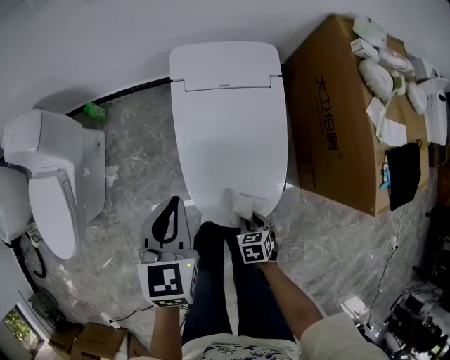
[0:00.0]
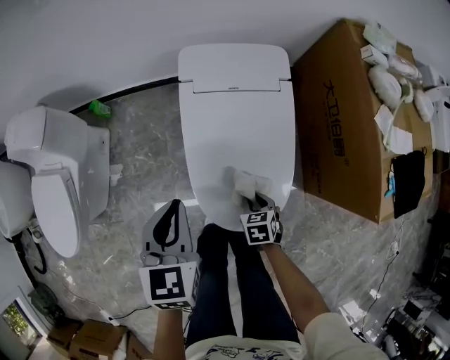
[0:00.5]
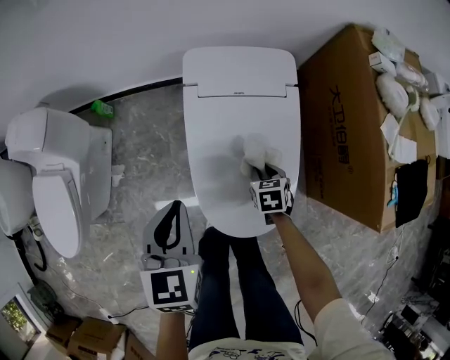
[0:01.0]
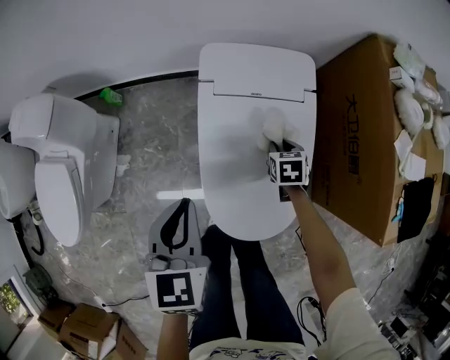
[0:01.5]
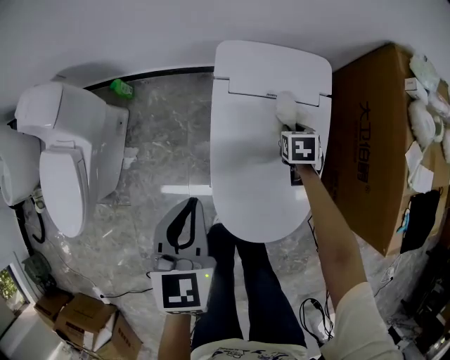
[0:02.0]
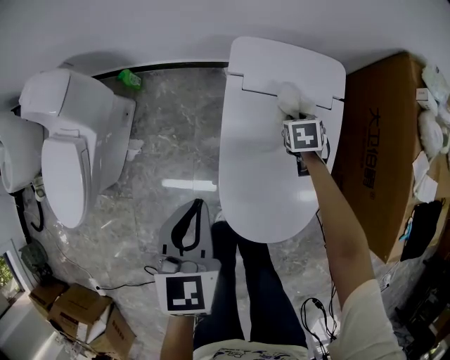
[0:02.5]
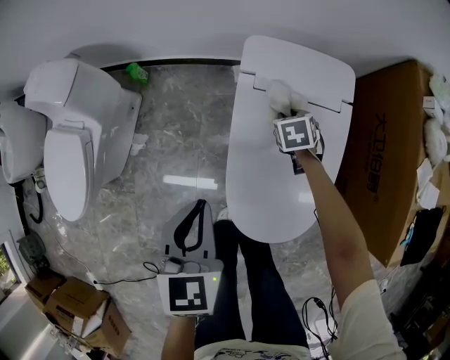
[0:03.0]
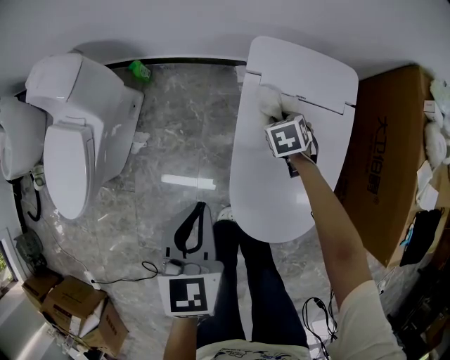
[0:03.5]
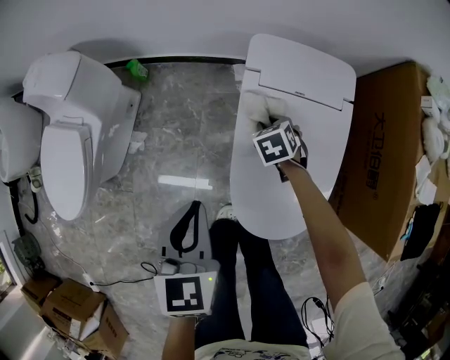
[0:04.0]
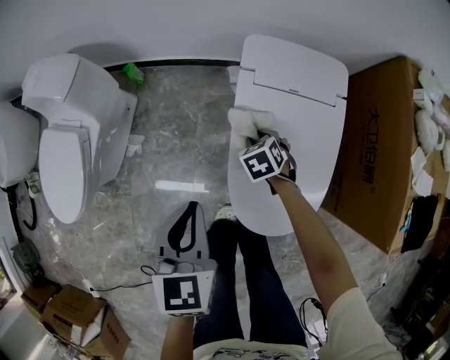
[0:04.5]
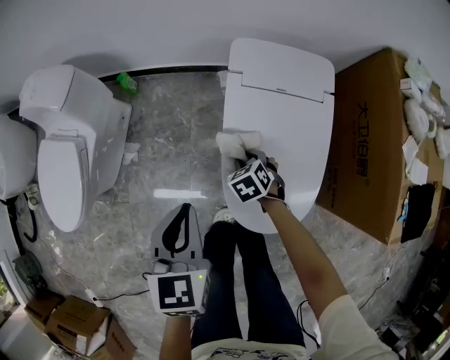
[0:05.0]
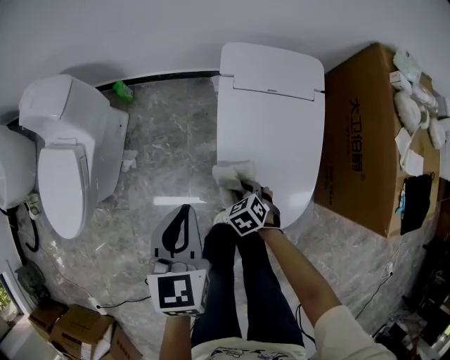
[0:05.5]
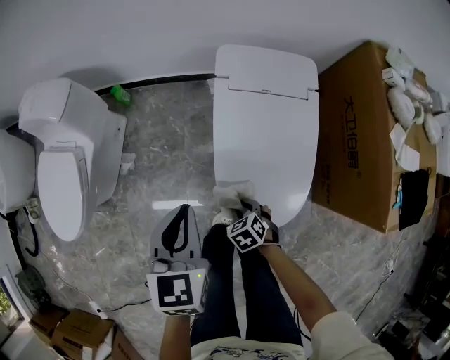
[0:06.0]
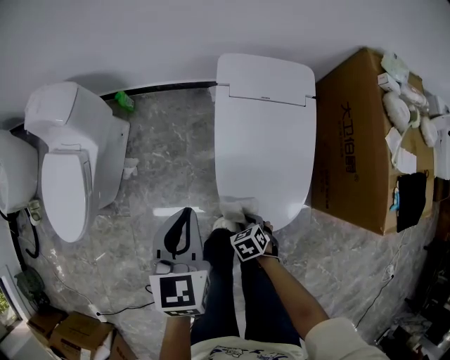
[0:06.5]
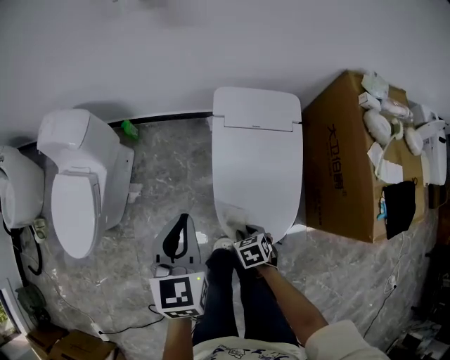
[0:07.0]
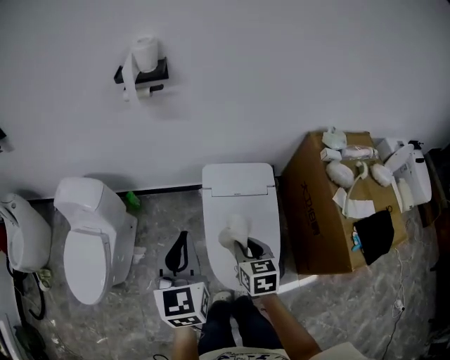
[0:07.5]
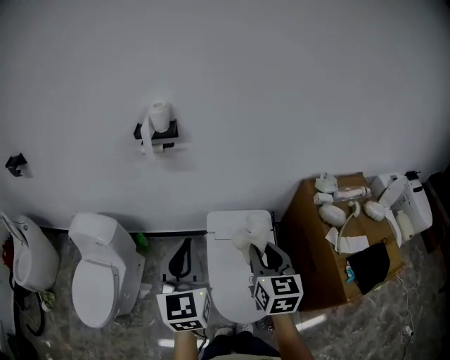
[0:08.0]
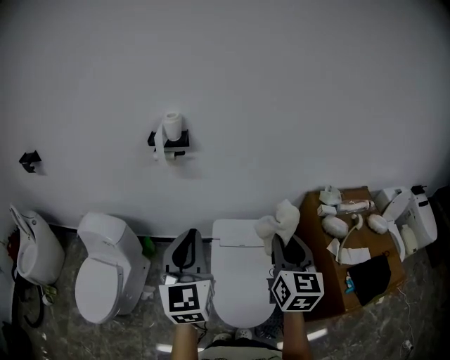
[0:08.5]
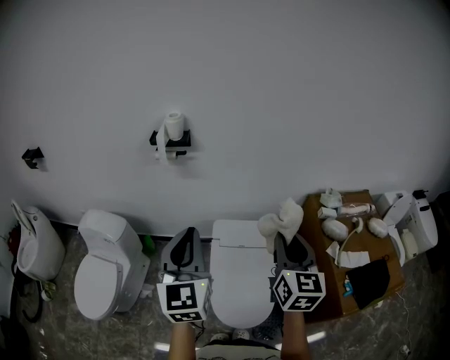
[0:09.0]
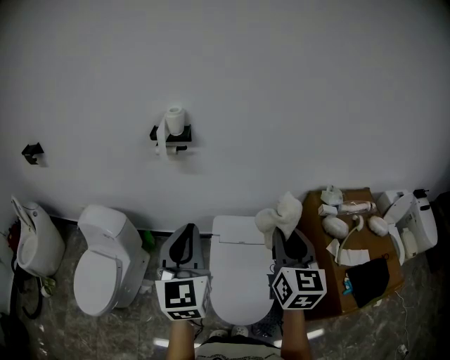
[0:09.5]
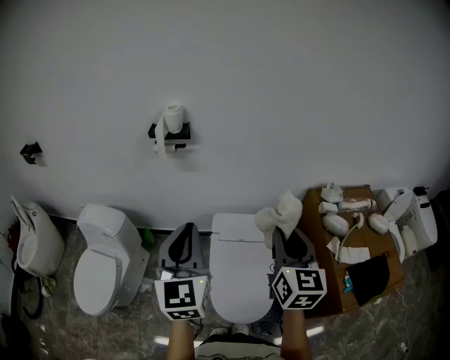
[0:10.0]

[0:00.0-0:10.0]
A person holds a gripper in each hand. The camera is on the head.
0.0 to 2.0 s: The left gripper changes place by some 5 cm. Meanwhile the right gripper heads forward, covering some 35 cm.
2.0 to 4.0 s: The right gripper shifts approximately 15 cm to the left, and turns by roughly 30 degrees; the left gripper heads to the left, covering approximately 5 cm.
4.0 to 6.0 s: The right gripper shifts approximately 30 cm backward.
6.0 to 8.0 s: The right gripper moves upward, approximately 60 cm, and points its fingers about 60 degrees further upward. The left gripper goes about 35 cm upward, and angles its fingers upward, by some 30 degrees.
8.0 to 10.0 s: The left gripper travels upward by roughly 5 cm, while the right gripper heads upward and to the right, covering some 10 cm.

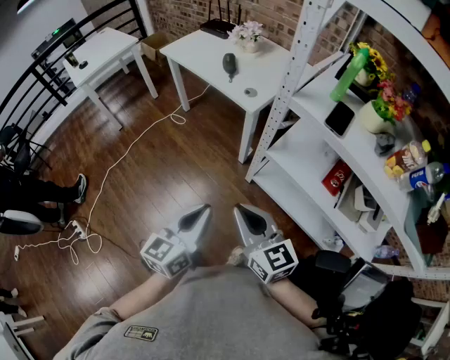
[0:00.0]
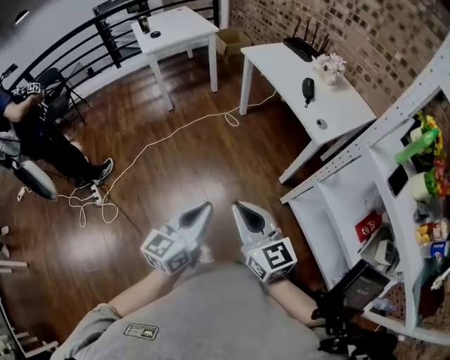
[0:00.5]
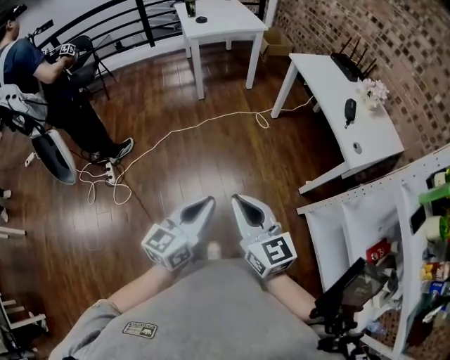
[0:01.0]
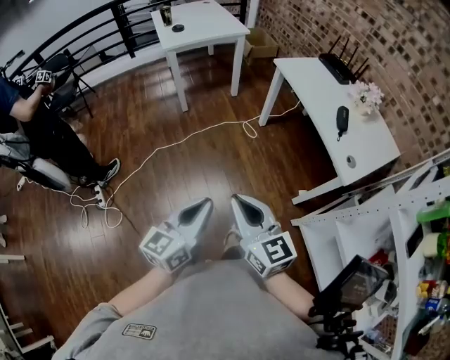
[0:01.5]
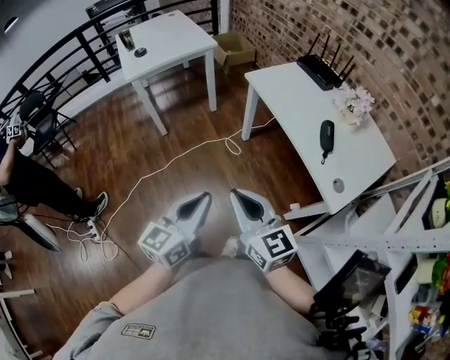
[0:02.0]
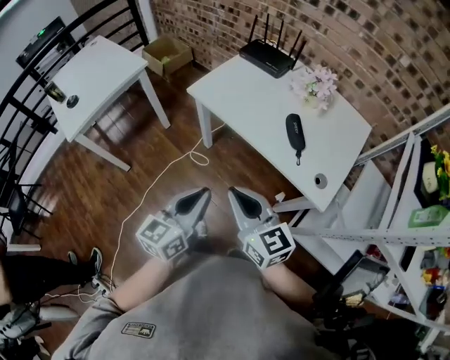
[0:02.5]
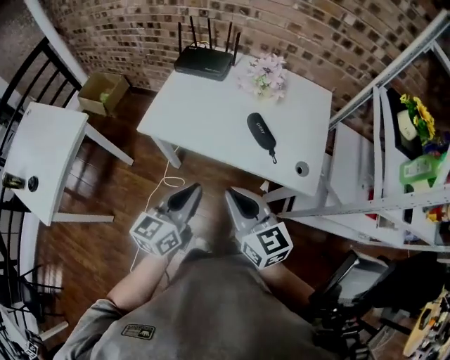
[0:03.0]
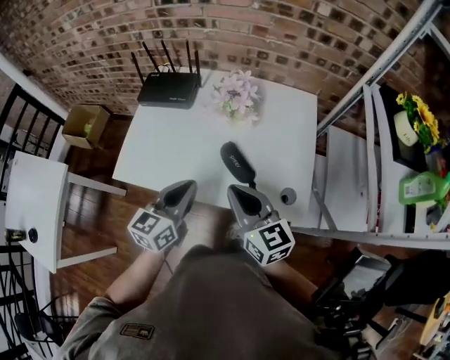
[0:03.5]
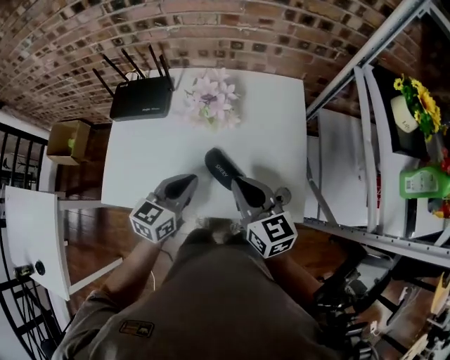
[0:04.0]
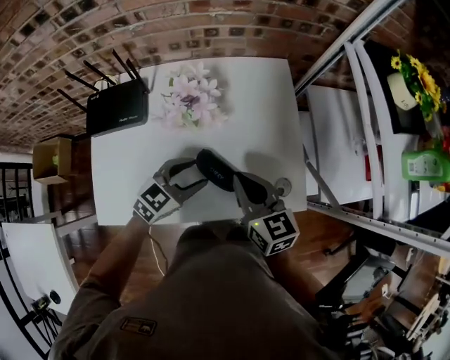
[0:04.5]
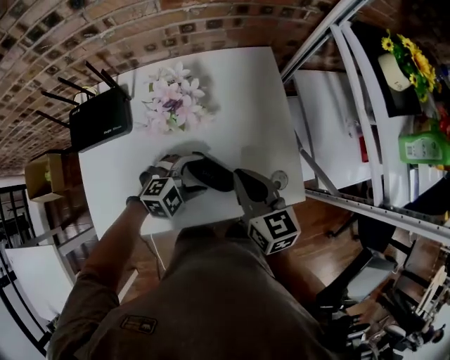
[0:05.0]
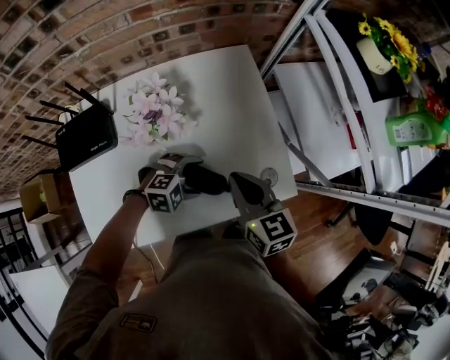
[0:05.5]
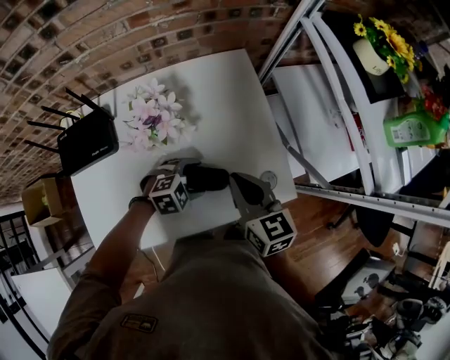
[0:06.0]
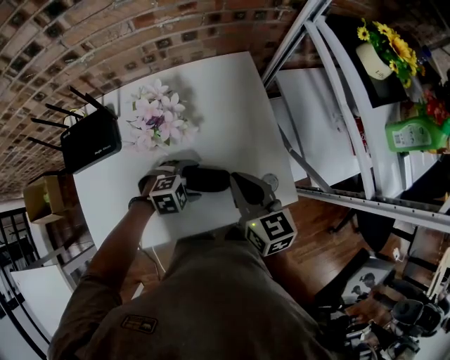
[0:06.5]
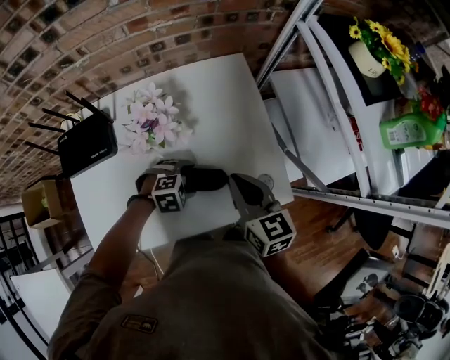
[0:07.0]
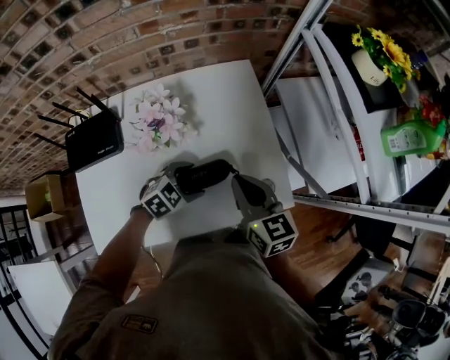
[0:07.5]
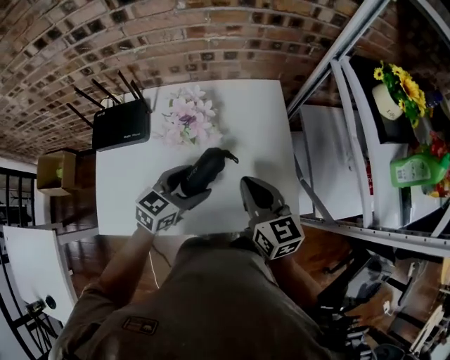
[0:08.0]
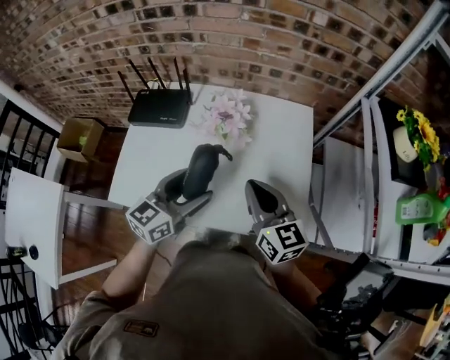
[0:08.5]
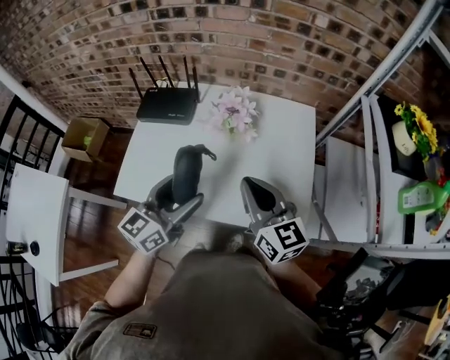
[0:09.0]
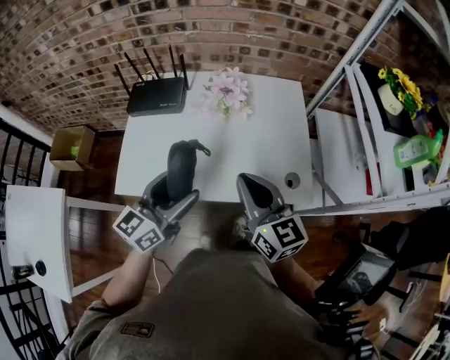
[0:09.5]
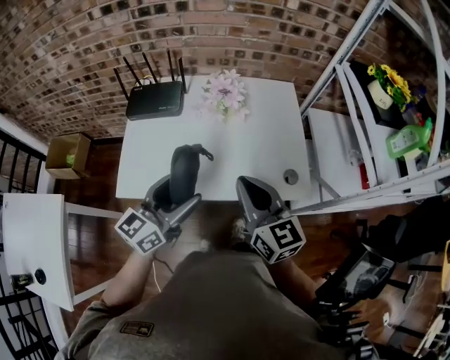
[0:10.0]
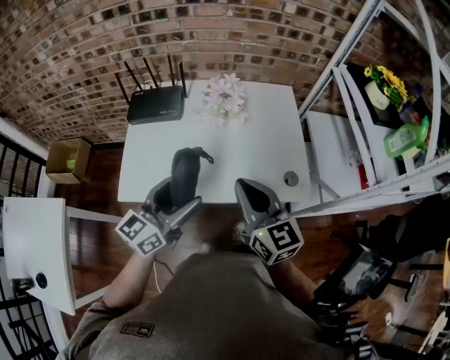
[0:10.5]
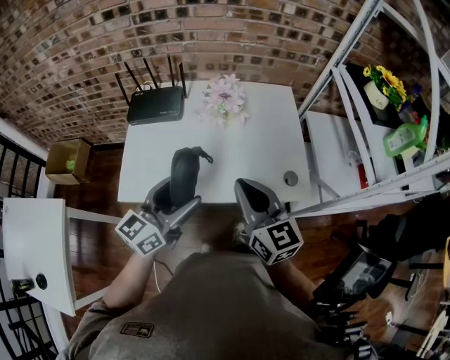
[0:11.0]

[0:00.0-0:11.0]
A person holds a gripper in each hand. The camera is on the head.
0.0 to 2.0 s: Both grippers are carried forward and to the left, roughly 40 cm.
2.0 to 3.5 s: The left gripper moves about 35 cm, and rotates some 50 degrees. The right gripper moves about 30 cm, and turns by roughly 50 degrees.
3.5 to 5.5 s: The left gripper shifts roughly 20 cm downward, angles its fingers downward, by about 40 degrees, and opens its fingers. Meanwhile the right gripper moves roughly 15 cm, and turns by some 40 degrees.
5.5 to 7.5 s: The left gripper turns by about 30 degrees.
7.5 to 9.0 s: The right gripper ends up roughly 15 cm from where it was, and swivels some 30 degrees, while the left gripper shifts about 20 cm upward, and angles its fingers upward, by approximately 40 degrees.
9.0 to 11.0 s: The right gripper shifts roughly 10 cm backward and to the left, while the left gripper travels backward by some 5 cm.

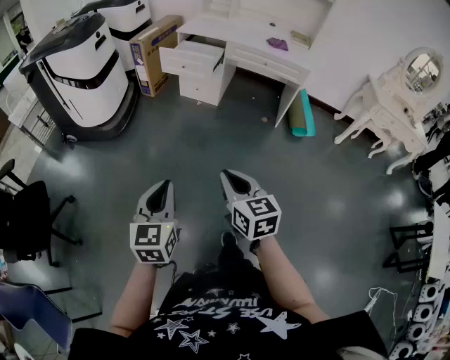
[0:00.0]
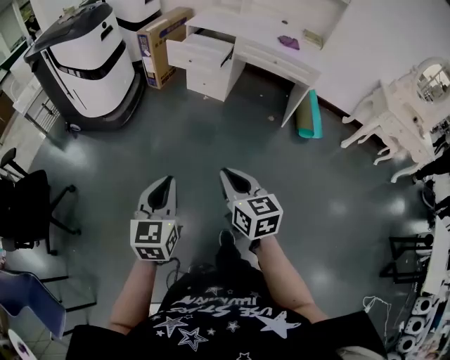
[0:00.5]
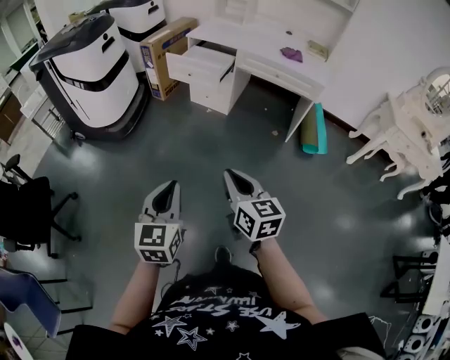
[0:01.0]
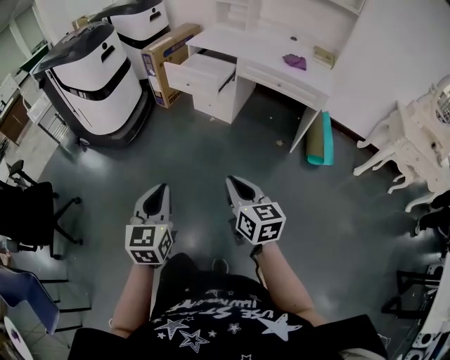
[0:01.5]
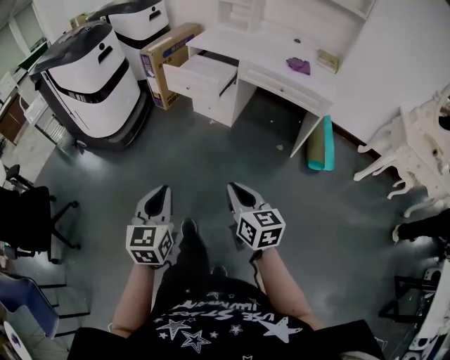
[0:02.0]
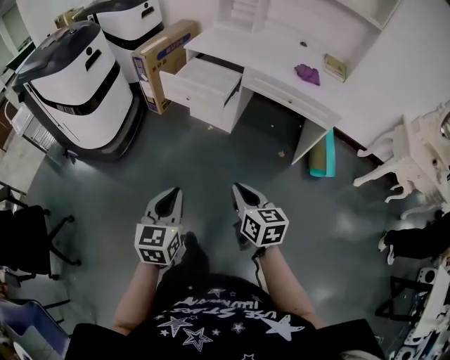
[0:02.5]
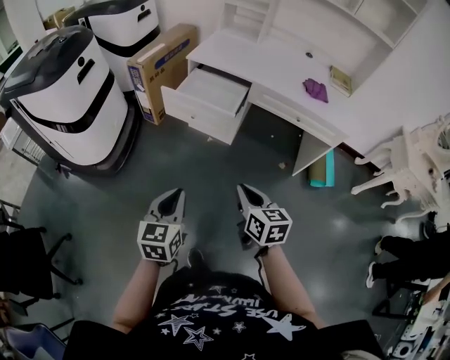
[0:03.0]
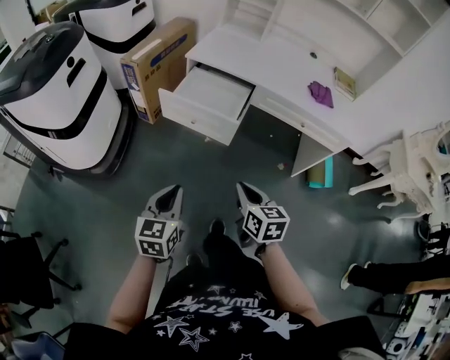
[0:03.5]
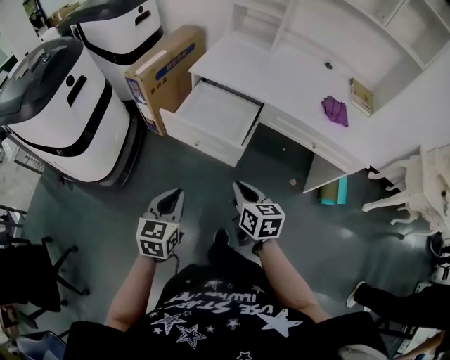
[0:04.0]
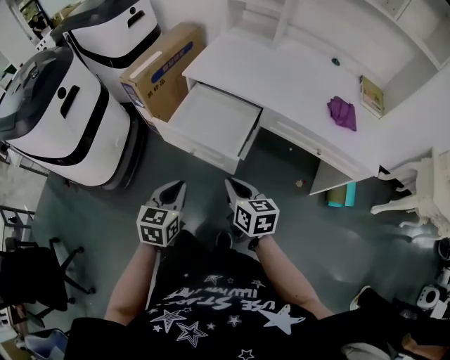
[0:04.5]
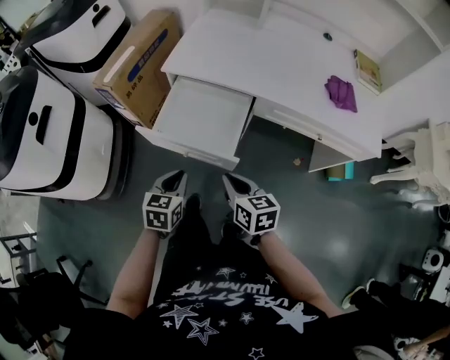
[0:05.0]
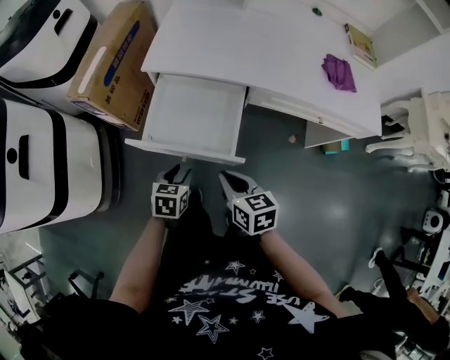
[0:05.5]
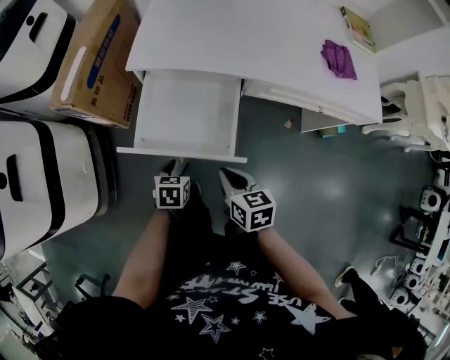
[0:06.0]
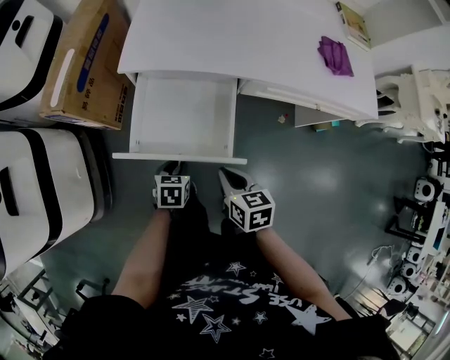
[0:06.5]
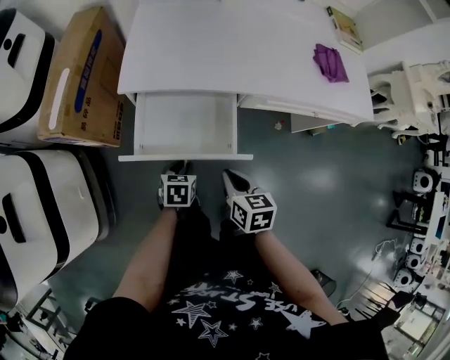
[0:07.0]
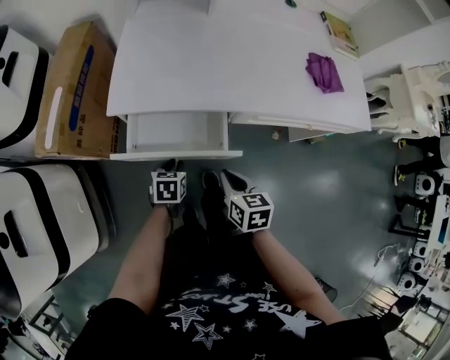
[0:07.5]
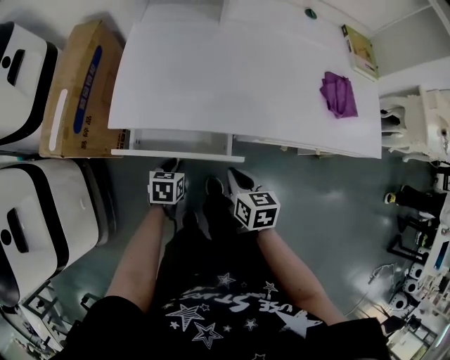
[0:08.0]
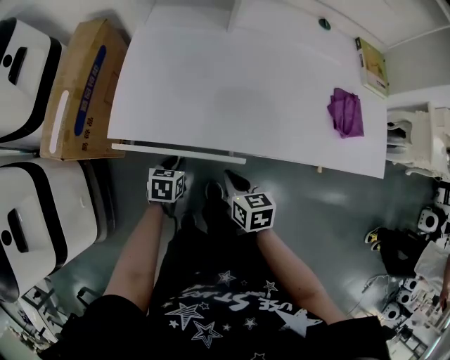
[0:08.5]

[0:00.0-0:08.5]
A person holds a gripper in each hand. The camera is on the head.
0.0 to 2.0 s: Both grippers travel together forward and to the right, approximately 20 cm.
2.0 to 4.0 s: Both grippers are carried forward, some 50 cm.
4.0 to 6.5 s: The left gripper goes about 35 cm forward and downward, tilts its fingers some 30 degrees downward, and opens, then closes once more. The right gripper shifts about 20 cm forward and downward, and turns by roughly 20 degrees.
6.5 to 8.5 s: The two grippers go roughly 20 cm forward.
